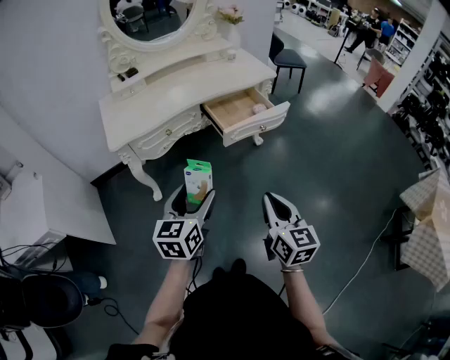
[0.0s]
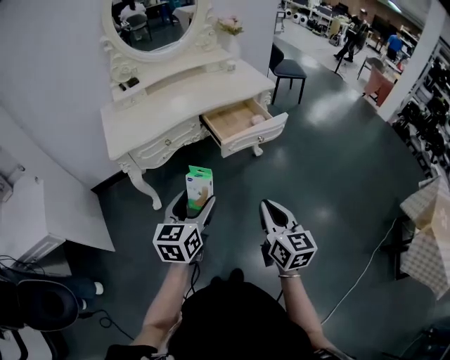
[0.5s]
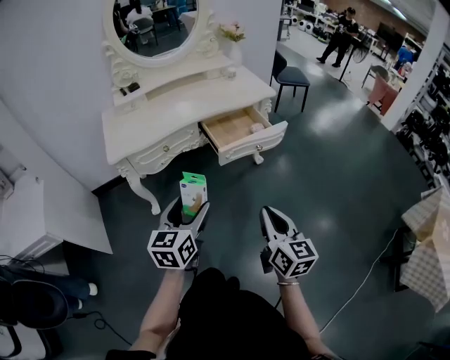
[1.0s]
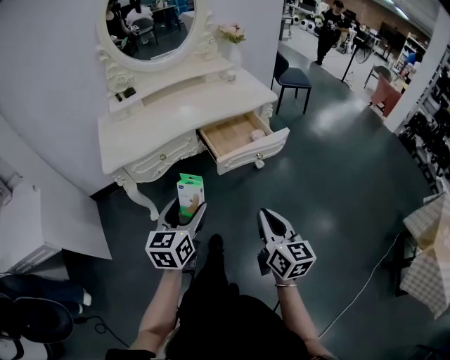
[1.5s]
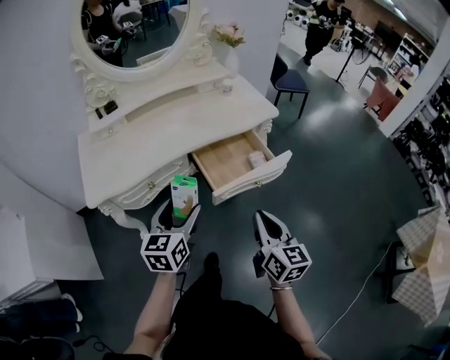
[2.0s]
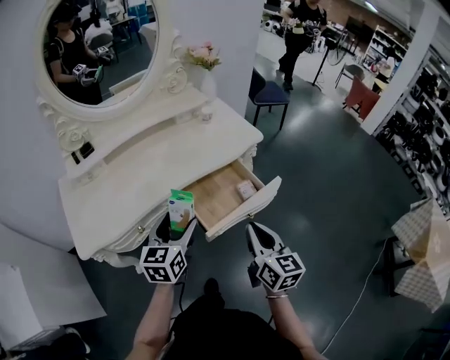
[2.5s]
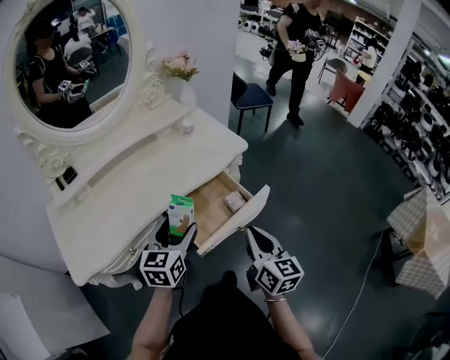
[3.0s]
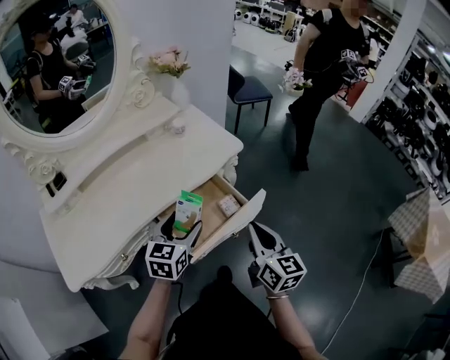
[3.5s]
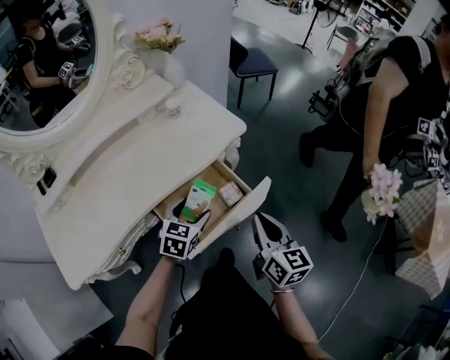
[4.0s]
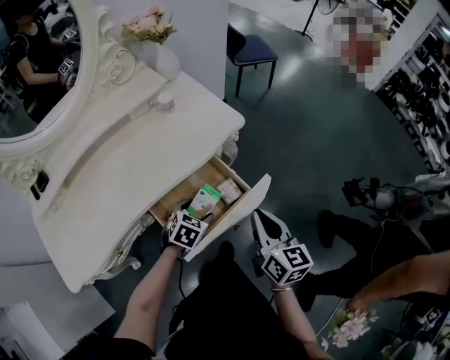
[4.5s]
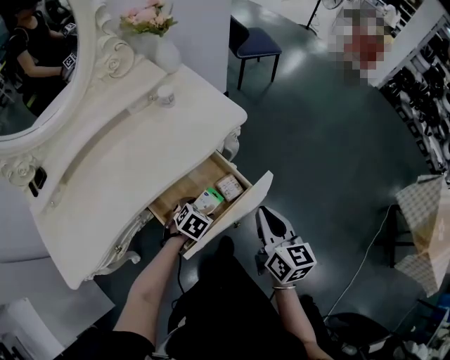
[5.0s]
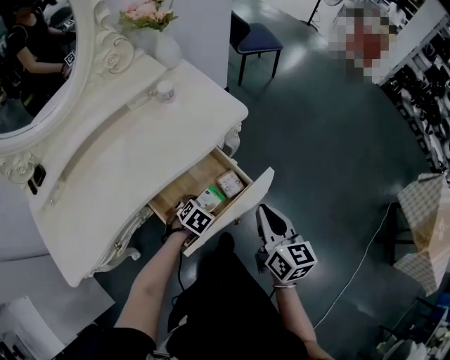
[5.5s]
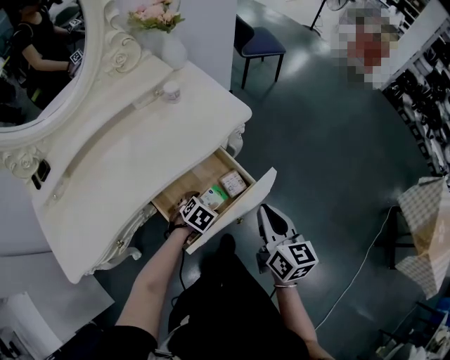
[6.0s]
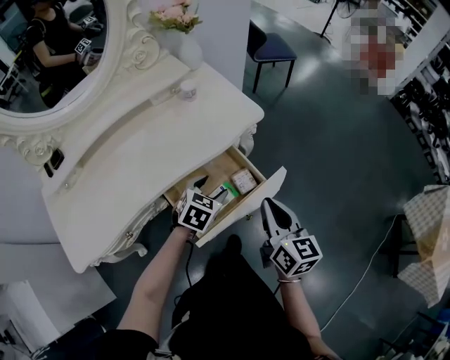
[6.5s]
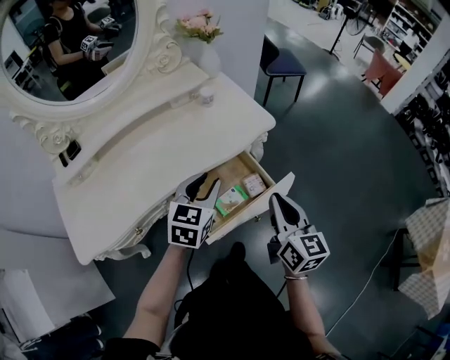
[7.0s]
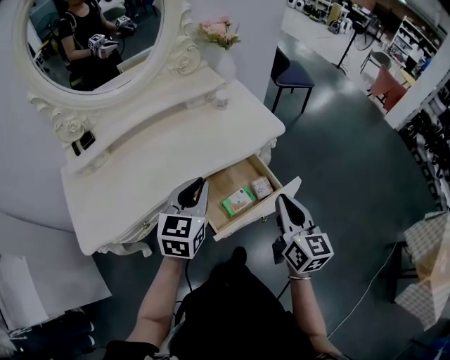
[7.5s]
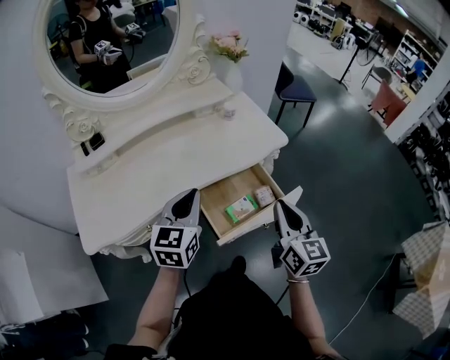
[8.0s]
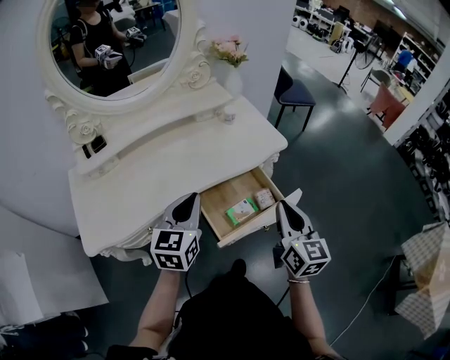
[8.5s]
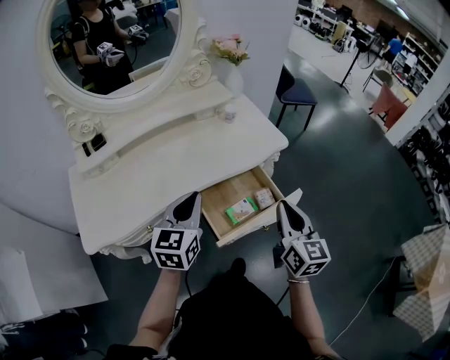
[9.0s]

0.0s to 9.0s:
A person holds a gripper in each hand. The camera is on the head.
0.0s to 2.0s: Both grippers move forward, some 25 cm.
2.0s to 4.5s: The right gripper heads forward, covering about 25 cm. Meanwhile the left gripper heads forward, downward and to the right, covering approximately 35 cm, and points its fingers about 40 degrees further downward.
4.5s to 7.0s: The left gripper heads upward, covering about 20 cm, changes its angle by some 30 degrees, and closes. The right gripper shifts approximately 5 cm upward.
7.0s to 9.0s: The left gripper shifts roughly 15 cm to the left, backward and upward, and closes its fingers.

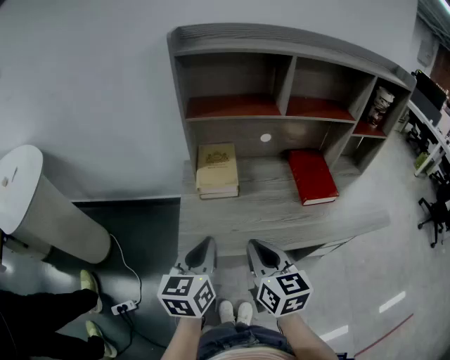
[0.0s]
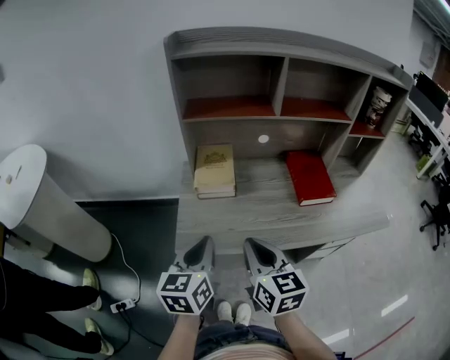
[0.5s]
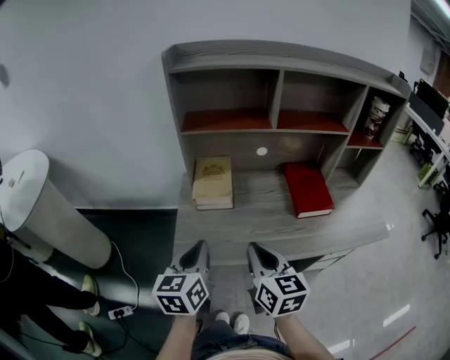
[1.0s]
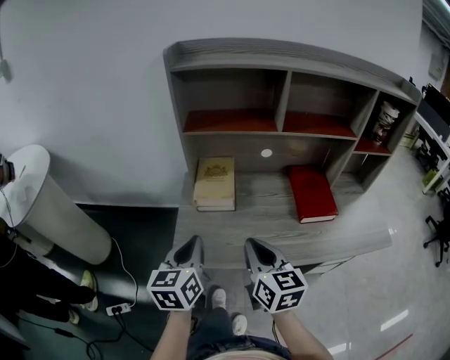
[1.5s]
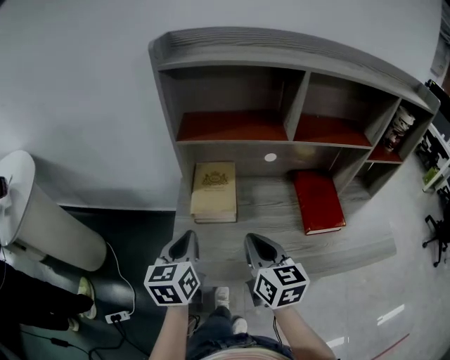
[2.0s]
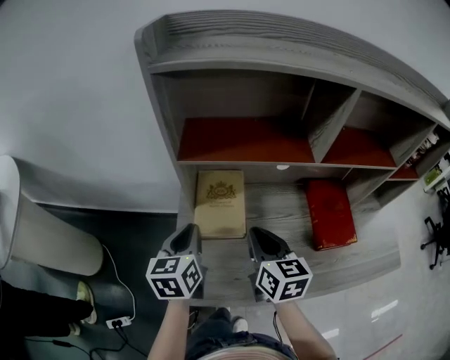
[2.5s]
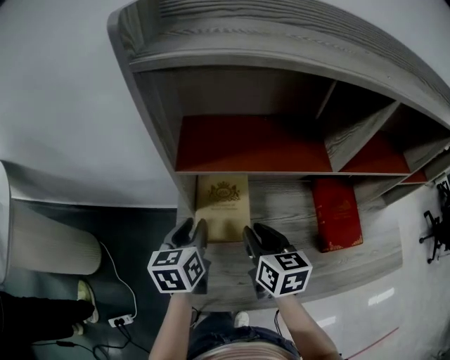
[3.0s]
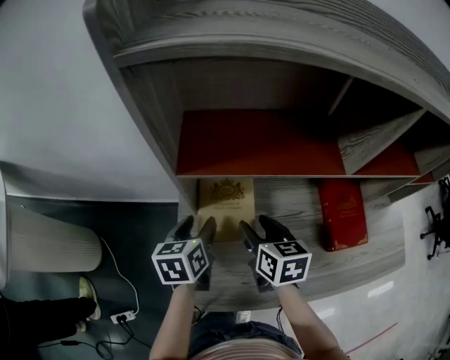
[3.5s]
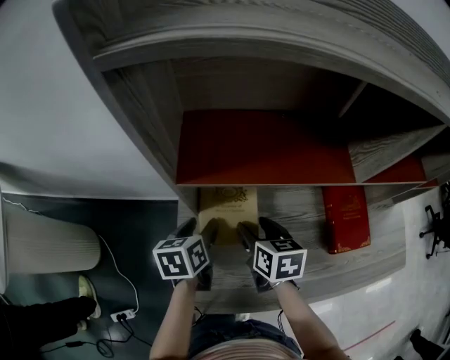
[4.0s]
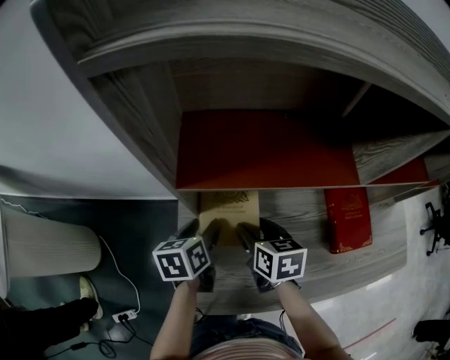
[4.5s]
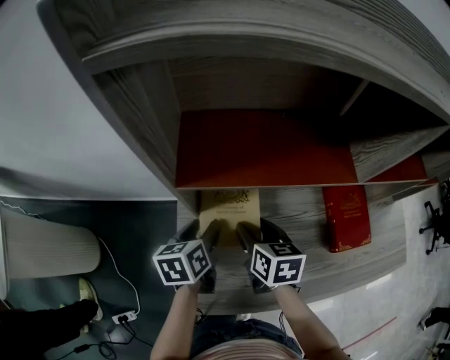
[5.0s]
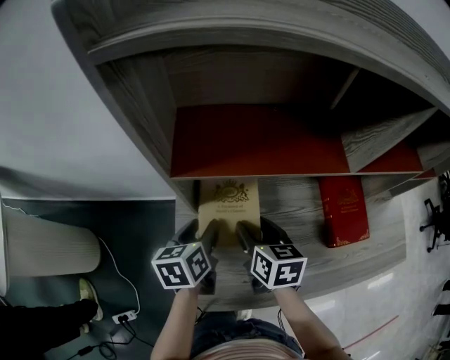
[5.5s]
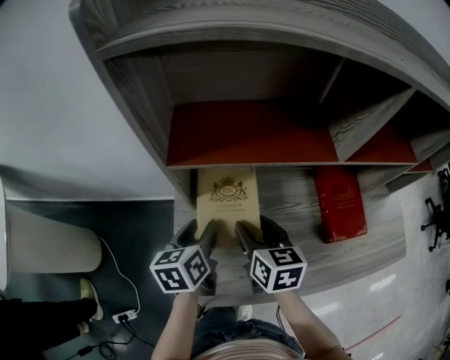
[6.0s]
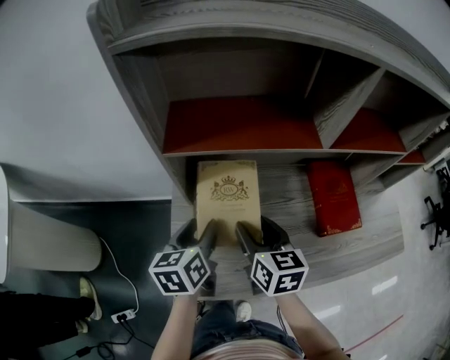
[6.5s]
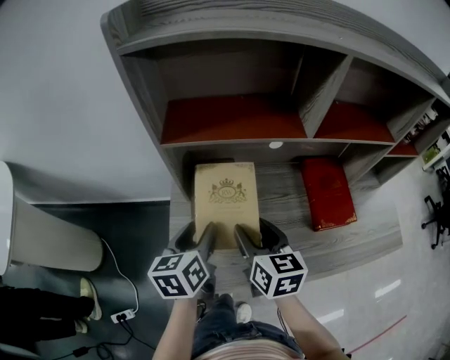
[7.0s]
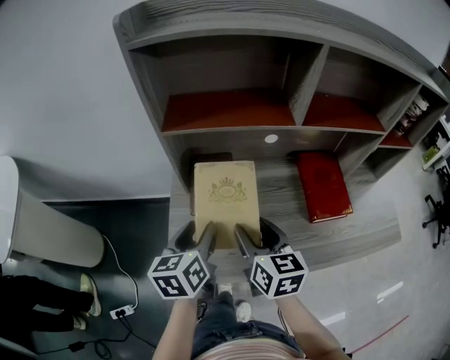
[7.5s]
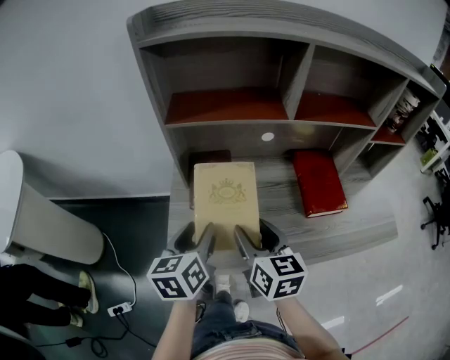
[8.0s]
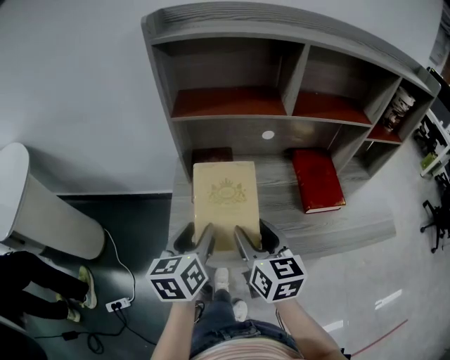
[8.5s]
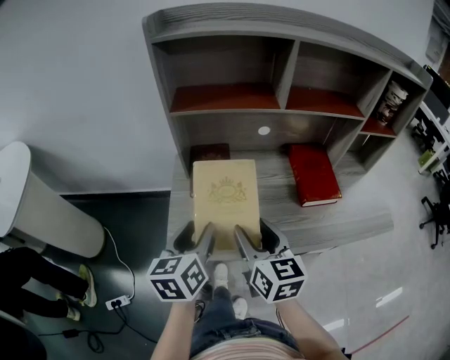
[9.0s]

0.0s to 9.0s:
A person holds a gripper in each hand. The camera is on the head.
0.0s to 2.0s: The grippers both shift forward by approximately 15 cm.
2.0s to 4.5s: The grippers both shift forward and downward by approximately 20 cm. The left gripper swivels roughly 30 degrees, and opens, while the right gripper rotates approximately 30 degrees, and opens up.
4.5s to 7.0s: The two grippers go some 15 cm backward and upward.
7.0s to 9.0s: Both grippers move backward, about 15 cm.

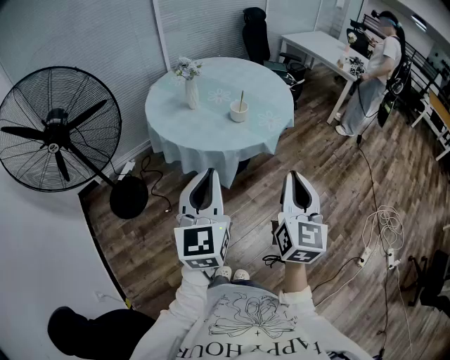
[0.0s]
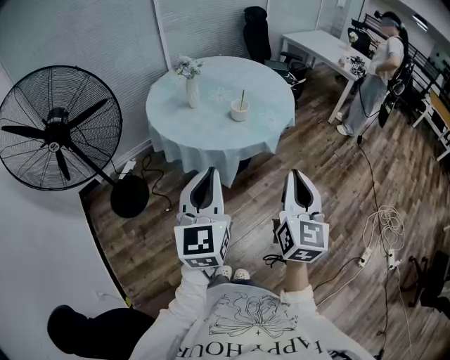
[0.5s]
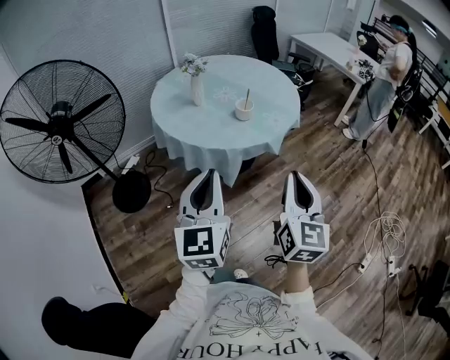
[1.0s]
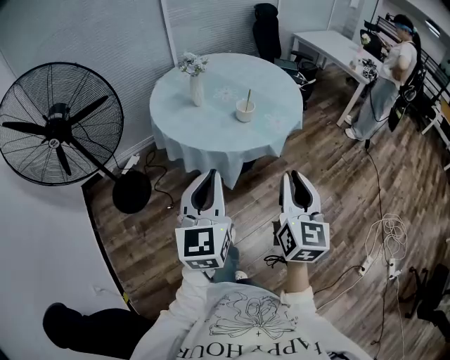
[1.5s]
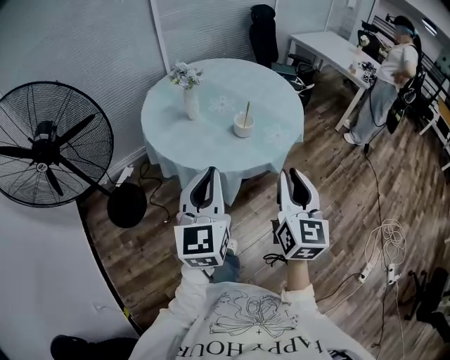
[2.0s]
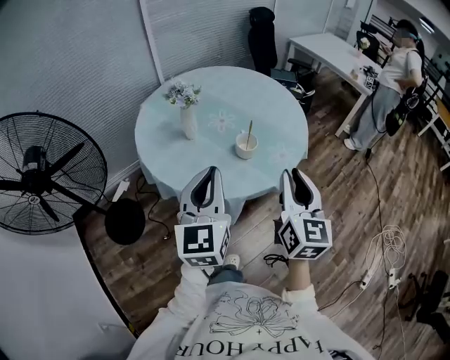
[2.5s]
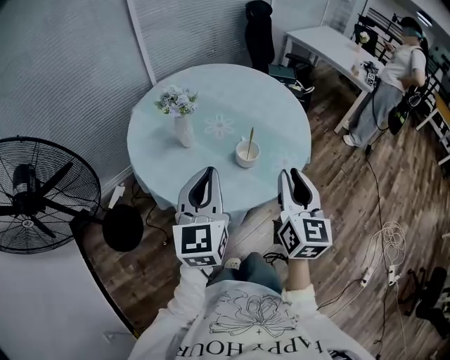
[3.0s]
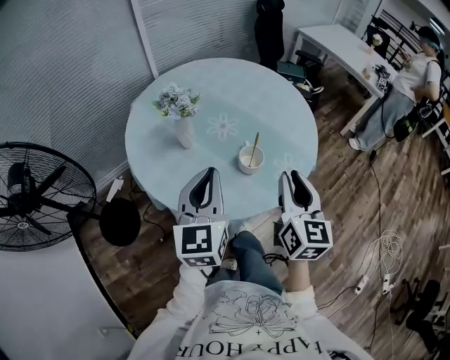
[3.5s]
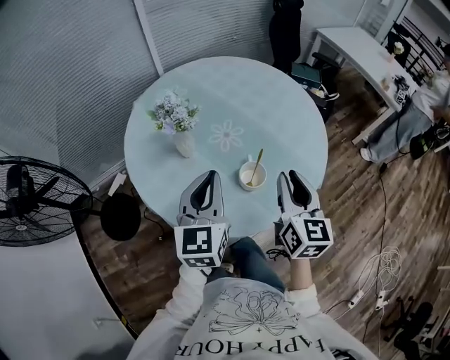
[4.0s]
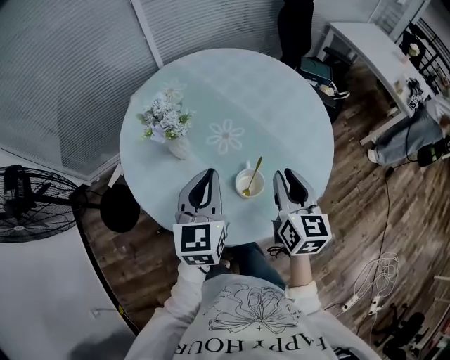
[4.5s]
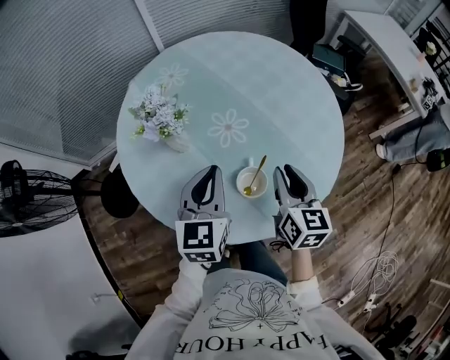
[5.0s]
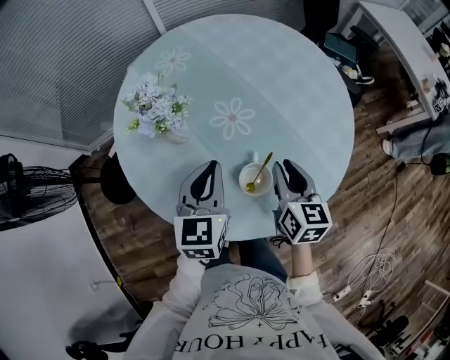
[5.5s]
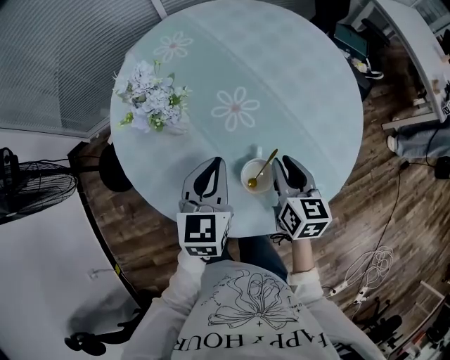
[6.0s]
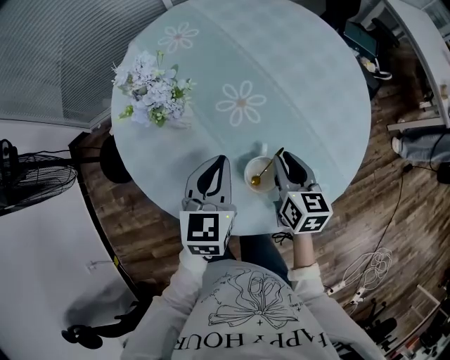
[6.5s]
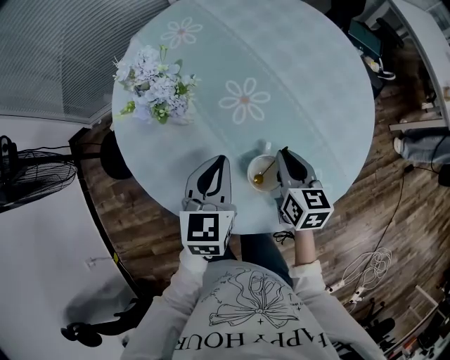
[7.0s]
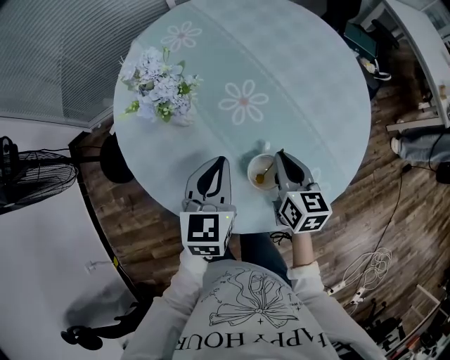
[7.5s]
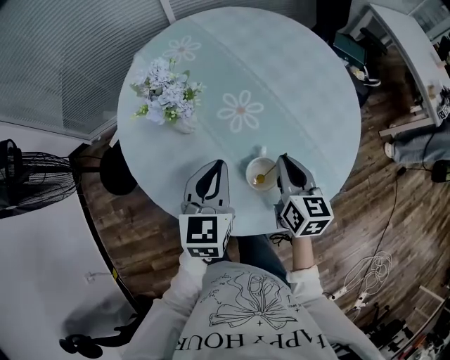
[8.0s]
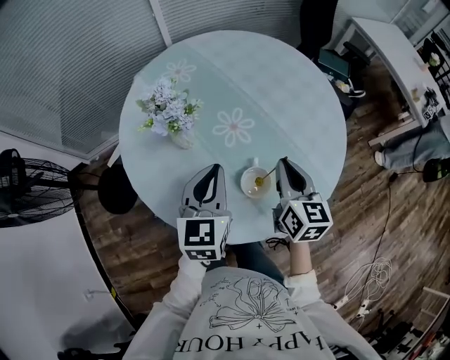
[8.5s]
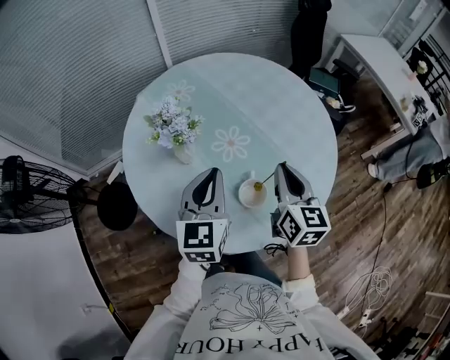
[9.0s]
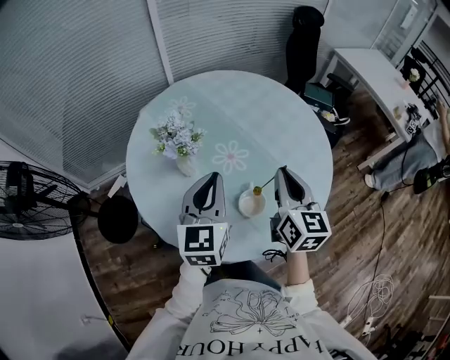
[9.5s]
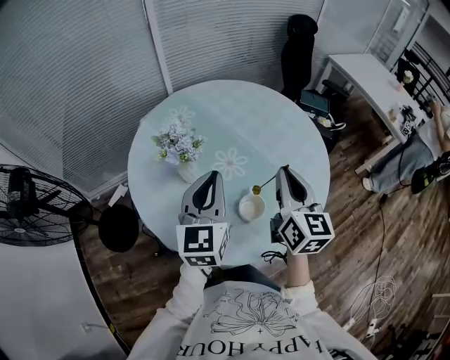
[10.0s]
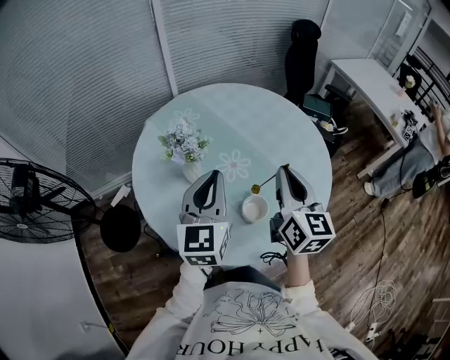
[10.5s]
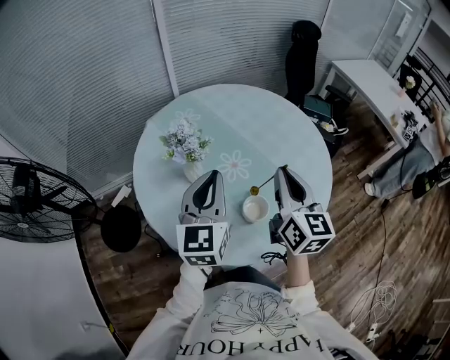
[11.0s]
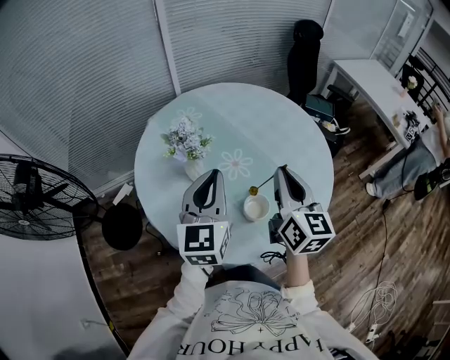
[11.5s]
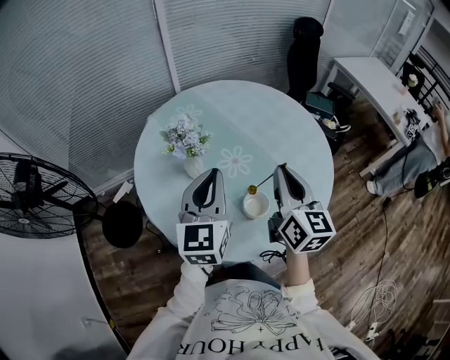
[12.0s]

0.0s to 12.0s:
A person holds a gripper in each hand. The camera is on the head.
0.0s to 2.0s: Both grippers move forward, some 15 cm.
2.0s to 4.0s: Both grippers move forward, approximately 35 cm.
4.0s to 6.0s: Both grippers travel together downward and forward, roughly 20 cm. The right gripper turns by roughly 30 degrees.
6.0s to 8.0s: The right gripper closes up.
8.0s to 10.0s: The grippers both shift upward by roughly 20 cm. The right gripper rotates some 20 degrees.
10.0s to 12.0s: The grippers stay close to where they were, moving slightly.
